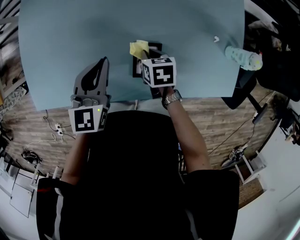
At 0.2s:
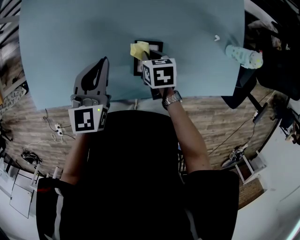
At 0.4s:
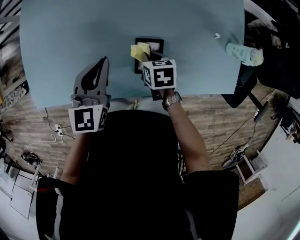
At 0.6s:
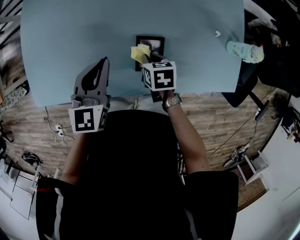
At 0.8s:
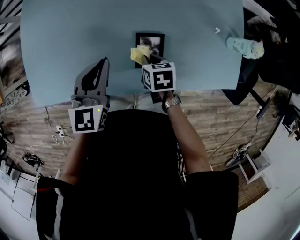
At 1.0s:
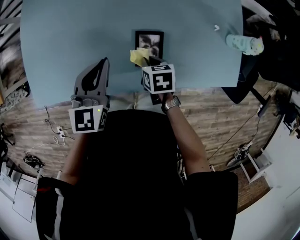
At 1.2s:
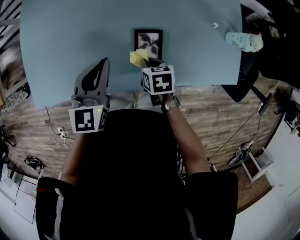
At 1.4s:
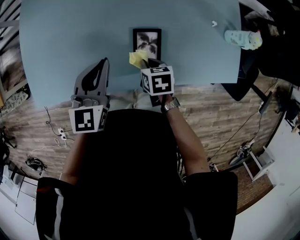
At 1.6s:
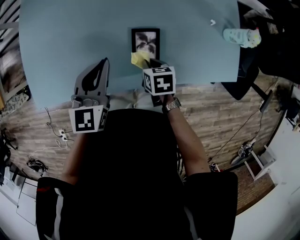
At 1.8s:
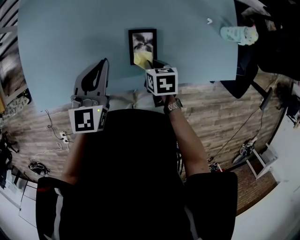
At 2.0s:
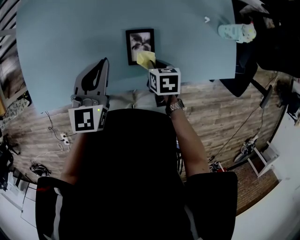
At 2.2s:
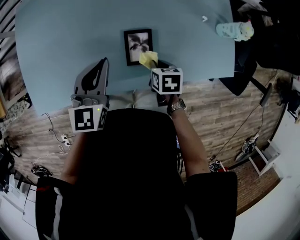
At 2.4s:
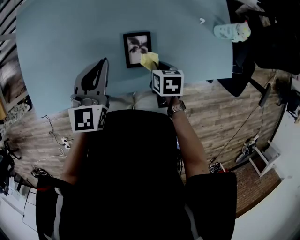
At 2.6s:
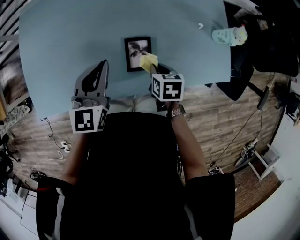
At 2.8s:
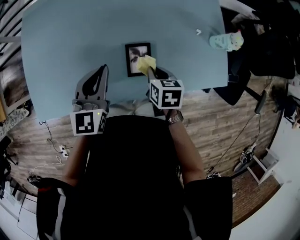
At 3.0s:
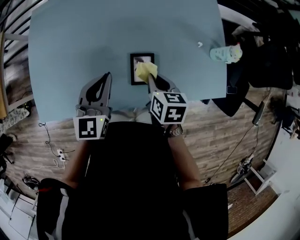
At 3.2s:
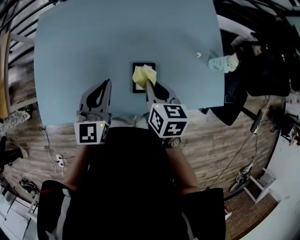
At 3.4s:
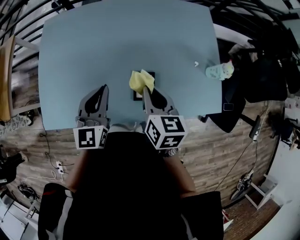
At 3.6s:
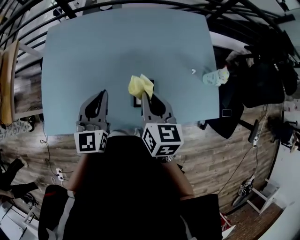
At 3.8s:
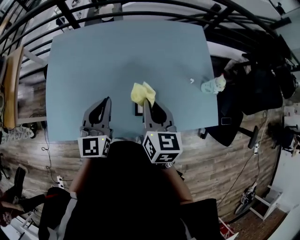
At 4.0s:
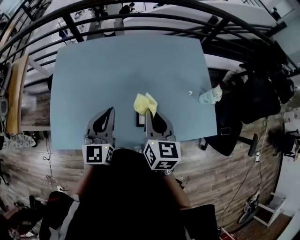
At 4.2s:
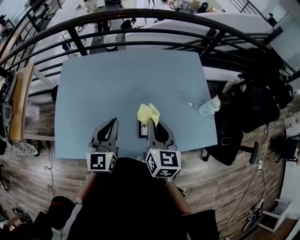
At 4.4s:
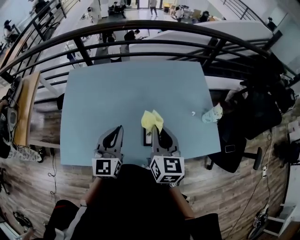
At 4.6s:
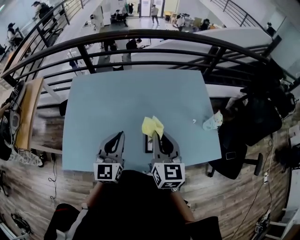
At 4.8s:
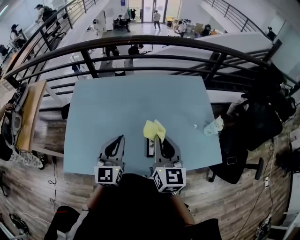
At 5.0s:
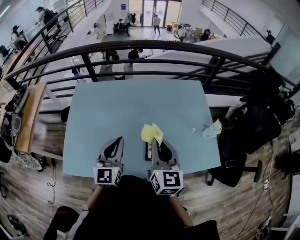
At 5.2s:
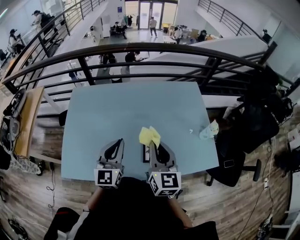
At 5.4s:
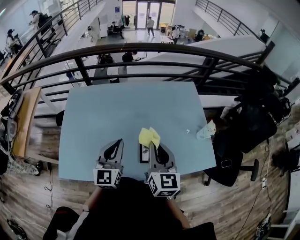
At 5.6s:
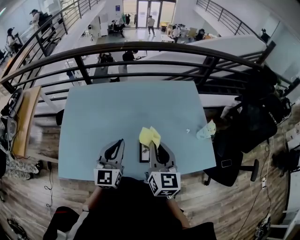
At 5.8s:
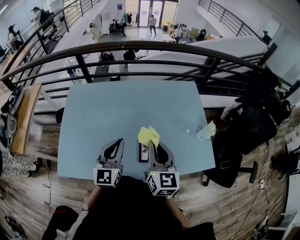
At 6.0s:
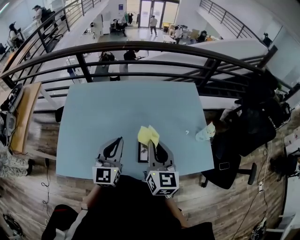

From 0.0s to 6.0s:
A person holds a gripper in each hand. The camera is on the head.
From 0.0s to 1.6s: The left gripper moves backward, some 5 cm. The right gripper heads backward, covering about 10 cm.
From 1.6s to 3.0s: The right gripper moves upward, roughly 10 cm.
From 3.0s to 4.4s: The left gripper is displaced upward by roughly 10 cm, while the right gripper moves upward, roughly 20 cm, and points its fingers roughly 30 degrees further upward.
From 4.4s to 6.0s: The grippers move only a little.

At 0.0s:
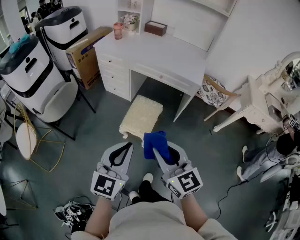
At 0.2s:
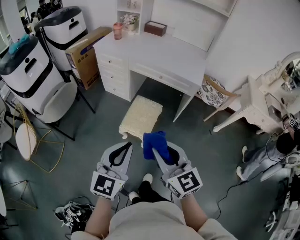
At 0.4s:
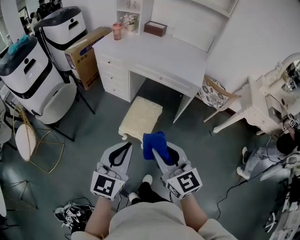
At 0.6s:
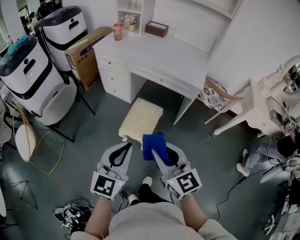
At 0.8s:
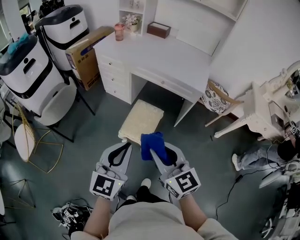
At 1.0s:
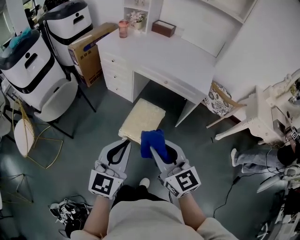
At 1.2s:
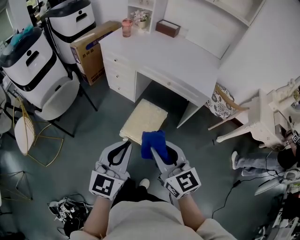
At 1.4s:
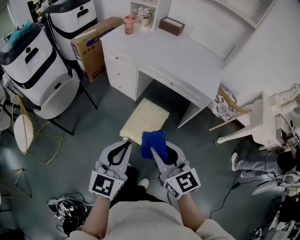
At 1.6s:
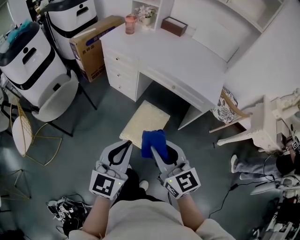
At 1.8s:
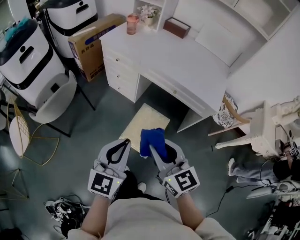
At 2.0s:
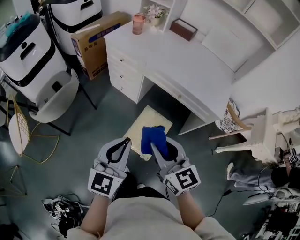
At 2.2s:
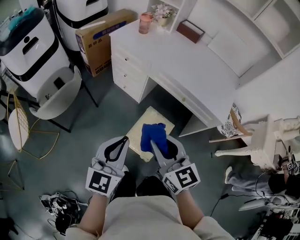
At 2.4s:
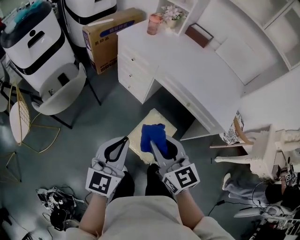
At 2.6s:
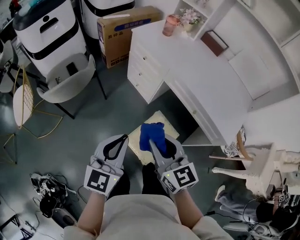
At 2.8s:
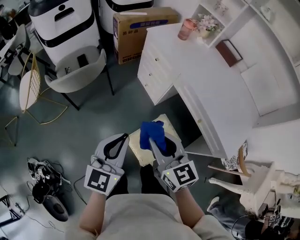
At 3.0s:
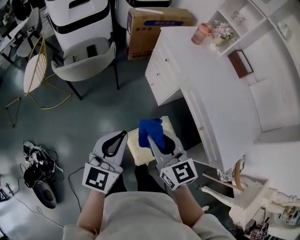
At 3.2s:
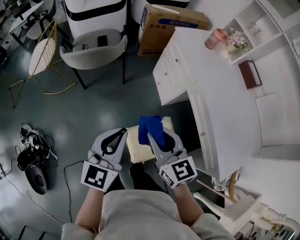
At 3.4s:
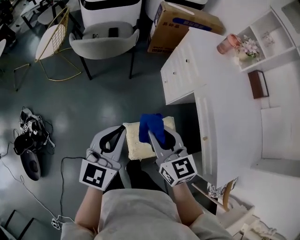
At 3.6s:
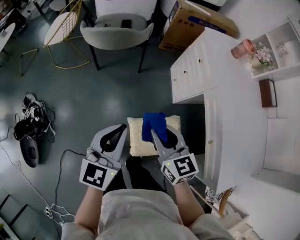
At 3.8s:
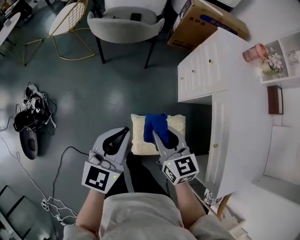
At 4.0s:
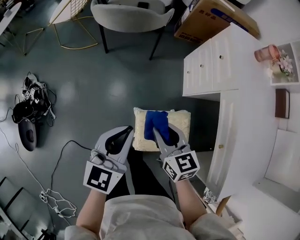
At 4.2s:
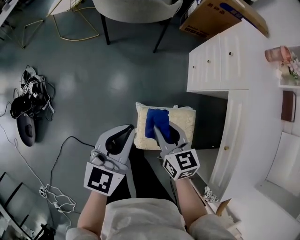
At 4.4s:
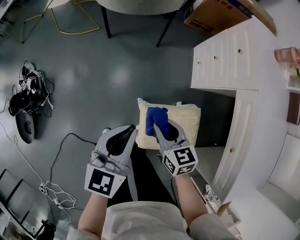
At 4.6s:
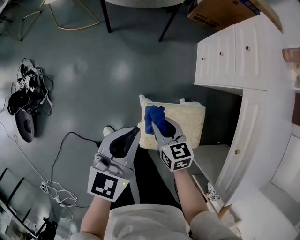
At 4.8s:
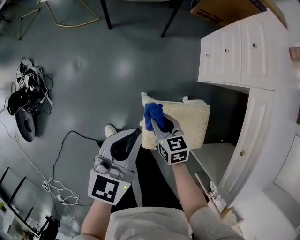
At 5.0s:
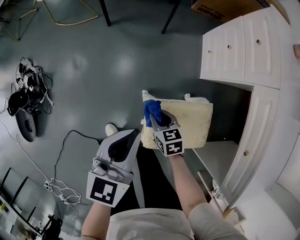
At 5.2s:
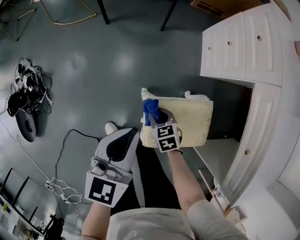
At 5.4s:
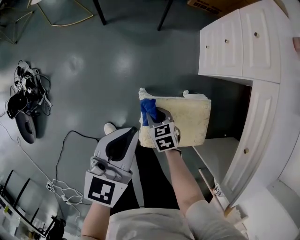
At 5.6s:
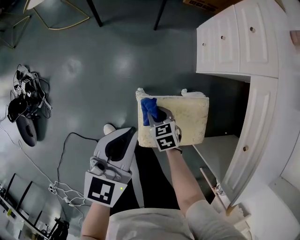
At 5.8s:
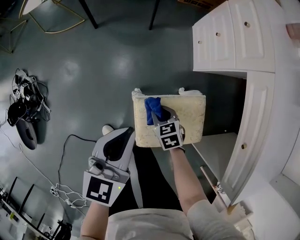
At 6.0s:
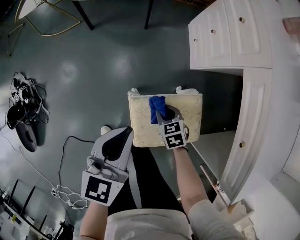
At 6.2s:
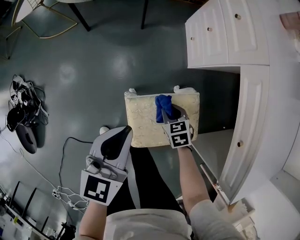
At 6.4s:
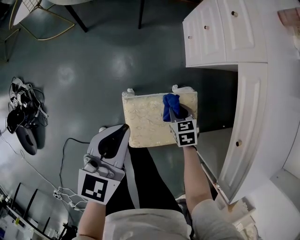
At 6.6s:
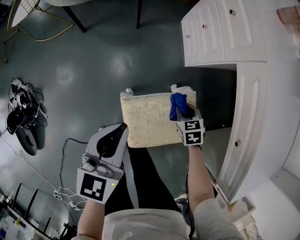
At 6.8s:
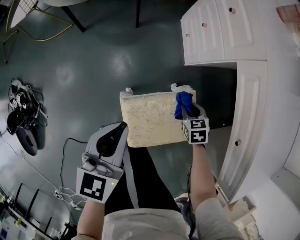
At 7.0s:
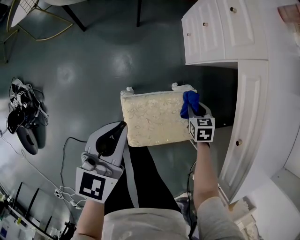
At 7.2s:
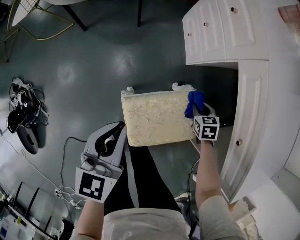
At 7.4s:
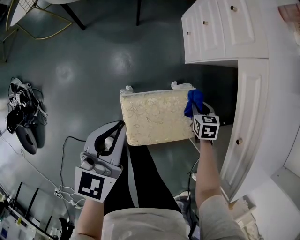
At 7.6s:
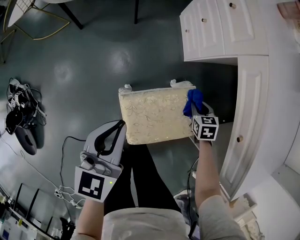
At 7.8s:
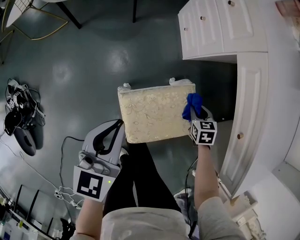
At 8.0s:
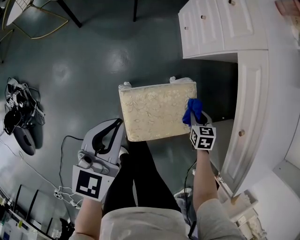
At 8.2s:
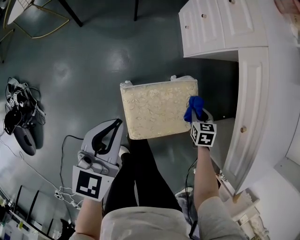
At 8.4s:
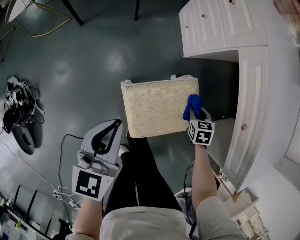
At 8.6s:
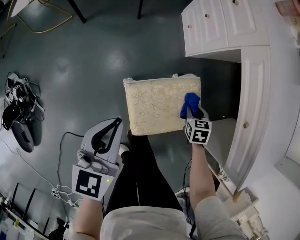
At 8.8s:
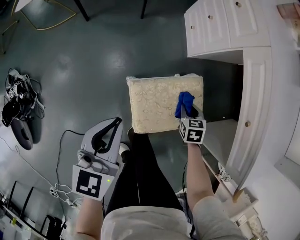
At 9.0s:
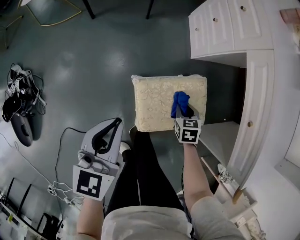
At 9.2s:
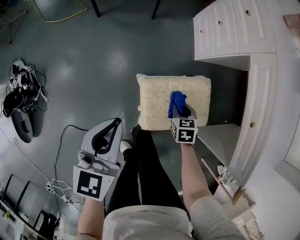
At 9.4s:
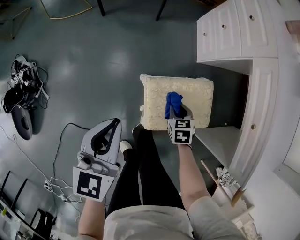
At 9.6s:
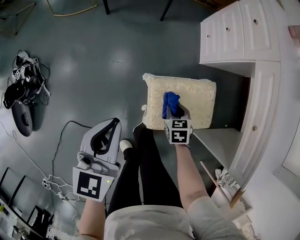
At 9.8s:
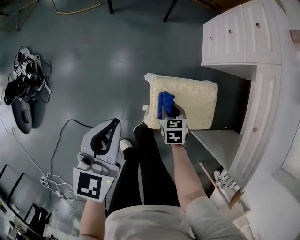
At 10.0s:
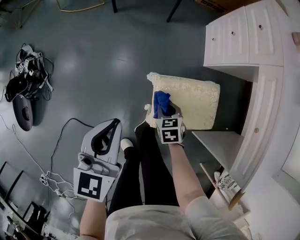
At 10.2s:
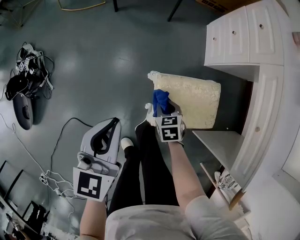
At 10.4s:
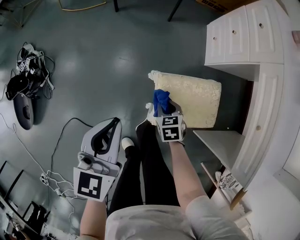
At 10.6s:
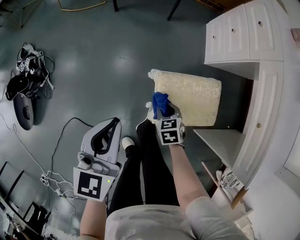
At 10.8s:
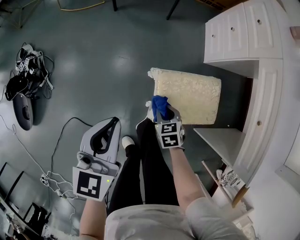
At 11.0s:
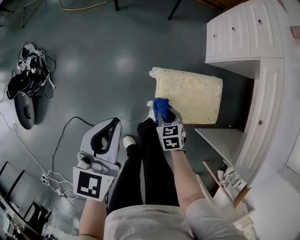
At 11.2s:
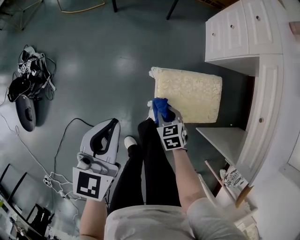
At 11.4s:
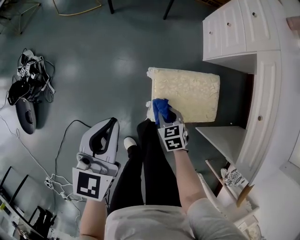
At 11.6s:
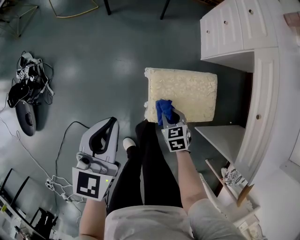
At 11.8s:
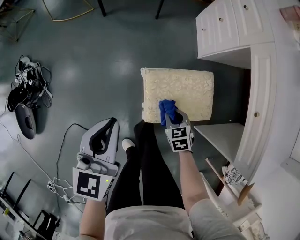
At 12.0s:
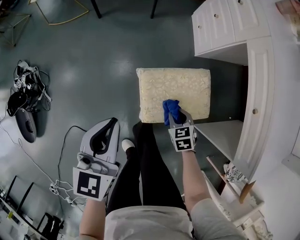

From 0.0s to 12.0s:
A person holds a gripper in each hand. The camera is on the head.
From 0.0s to 1.6s: Both grippers move forward, roughly 20 cm.
From 1.6s to 3.0s: The left gripper shifts by approximately 20 cm, and rotates roughly 30 degrees; the right gripper ends up roughly 25 cm from where it was, and turns by approximately 30 degrees.
From 3.0s to 4.4s: Both grippers move downward, about 25 cm. The left gripper swivels some 30 degrees. Meanwhile the right gripper turns by about 30 degrees.
From 4.4s to 6.0s: The left gripper moves downward and to the right, about 10 cm; the right gripper shifts roughly 25 cm downward and to the right, and rotates some 20 degrees.
From 6.0s to 7.6s: The right gripper heads to the right, covering about 20 cm, and rotates approximately 20 degrees.
From 7.6s to 9.0s: The two grippers go approximately 15 cm backward and to the left.
From 9.0s to 10.4s: The right gripper is displaced to the left by approximately 15 cm; the left gripper travels to the left and backward by about 10 cm.
From 10.4s to 12.0s: The left gripper goes about 5 cm to the right. The right gripper travels to the right and backward by some 15 cm.

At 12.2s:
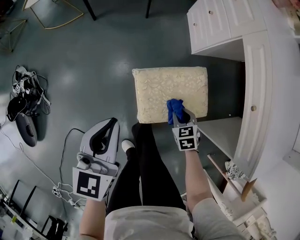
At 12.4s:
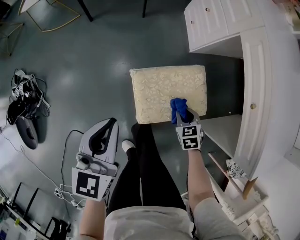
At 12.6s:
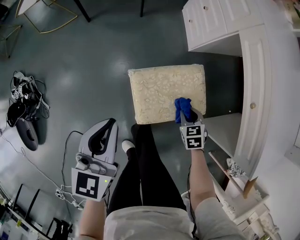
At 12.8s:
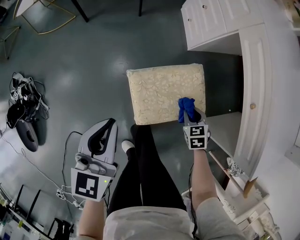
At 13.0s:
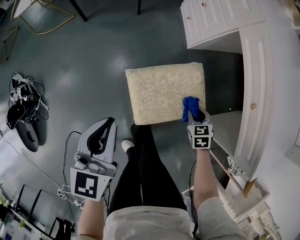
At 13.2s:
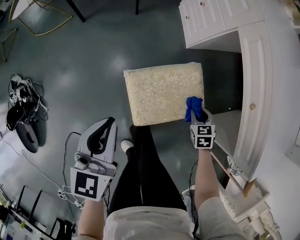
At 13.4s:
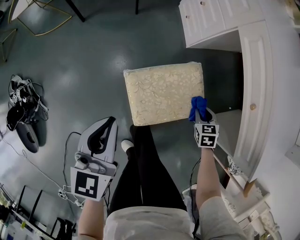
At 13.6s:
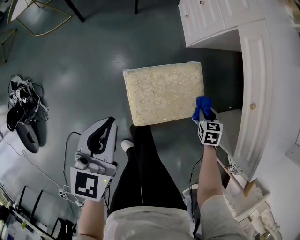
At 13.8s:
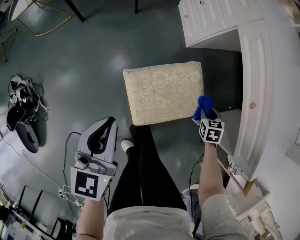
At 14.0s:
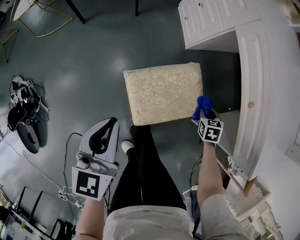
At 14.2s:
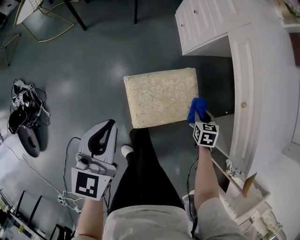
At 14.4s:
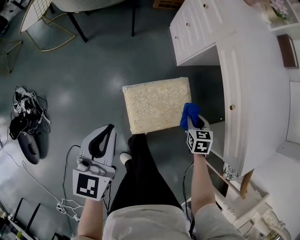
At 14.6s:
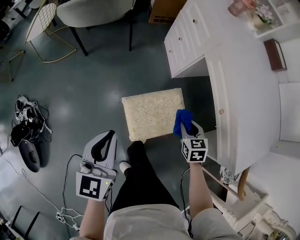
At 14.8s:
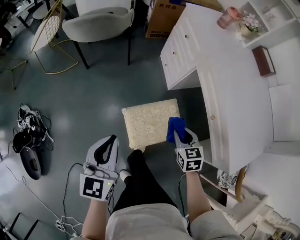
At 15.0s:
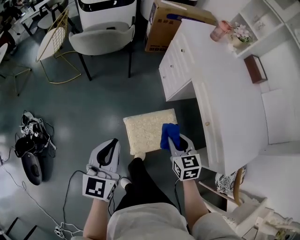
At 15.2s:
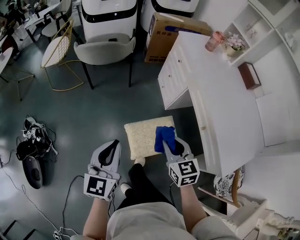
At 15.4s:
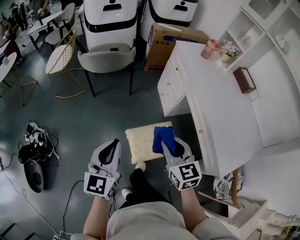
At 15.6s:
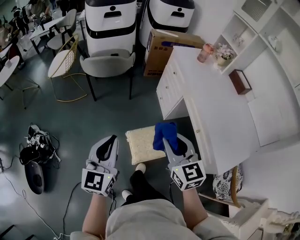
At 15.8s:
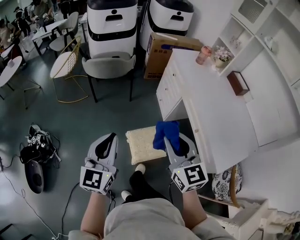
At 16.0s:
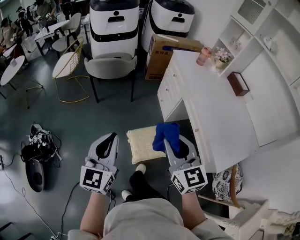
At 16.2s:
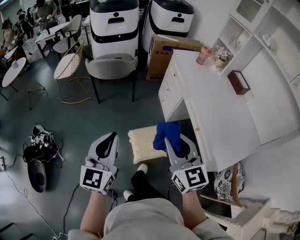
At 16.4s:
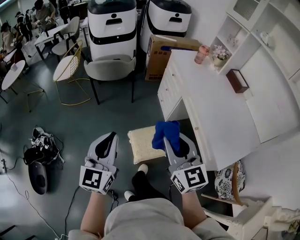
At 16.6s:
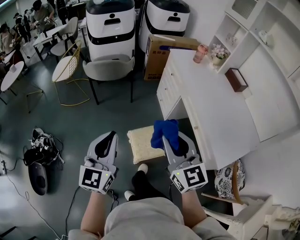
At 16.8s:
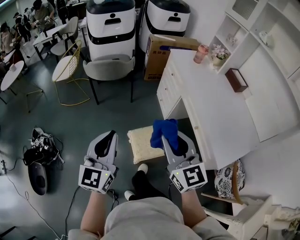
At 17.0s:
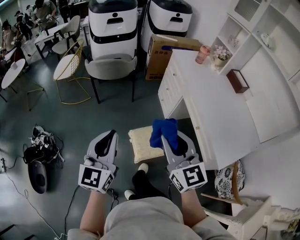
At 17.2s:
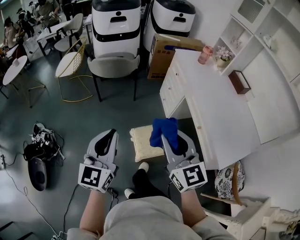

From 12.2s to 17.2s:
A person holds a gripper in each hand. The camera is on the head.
From 12.2s to 13.8s: The right gripper travels to the right by about 20 cm, and changes its angle by some 20 degrees.
From 13.8s to 15.6s: The right gripper goes about 60 cm upward and to the left, and points its fingers about 50 degrees further upward; the left gripper goes approximately 30 cm upward, and swivels approximately 20 degrees.
From 15.6s to 17.2s: The right gripper heads upward and backward, covering approximately 10 cm. The left gripper is displaced upward by about 5 cm.
